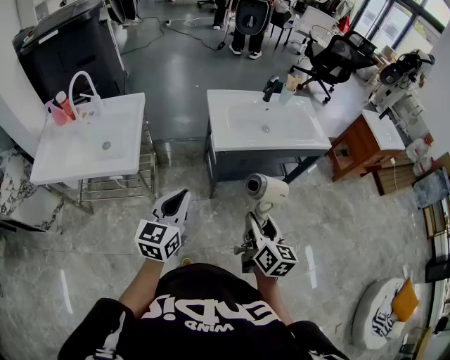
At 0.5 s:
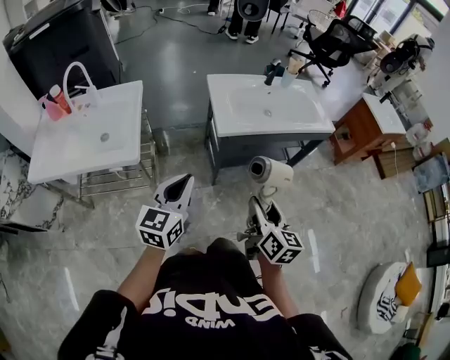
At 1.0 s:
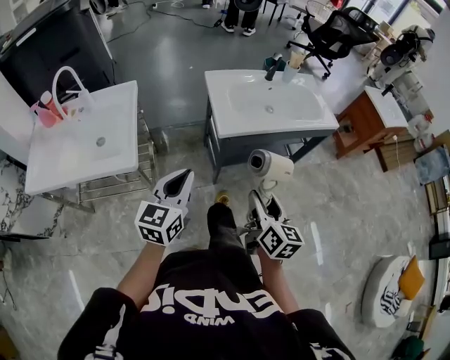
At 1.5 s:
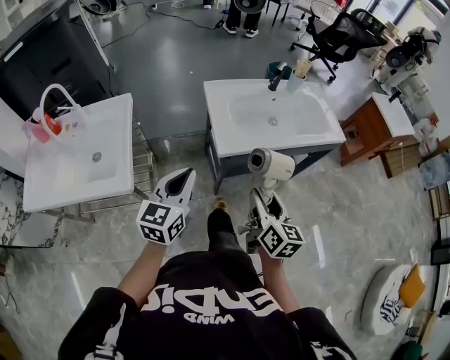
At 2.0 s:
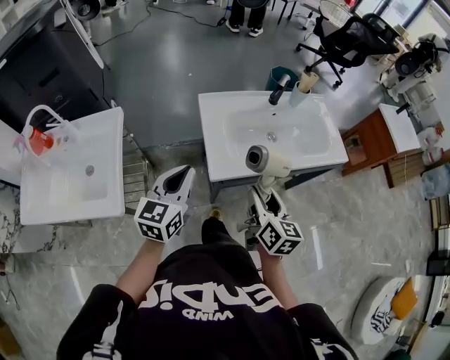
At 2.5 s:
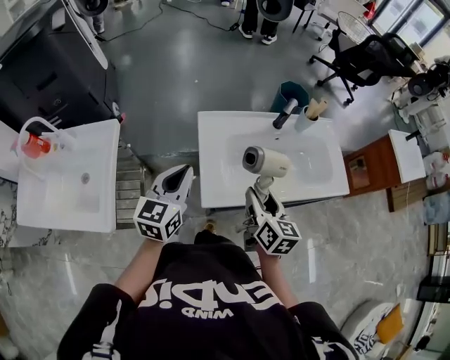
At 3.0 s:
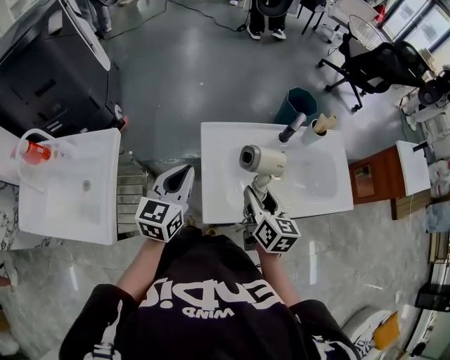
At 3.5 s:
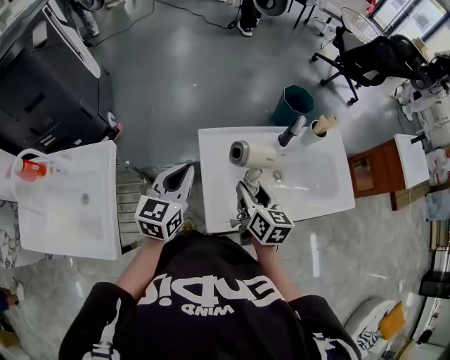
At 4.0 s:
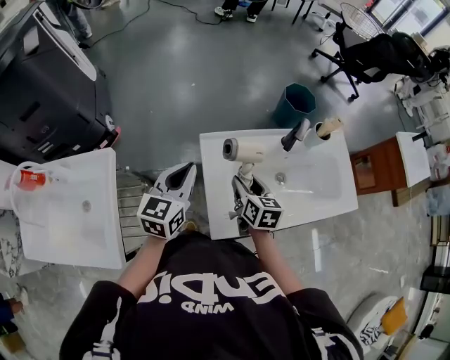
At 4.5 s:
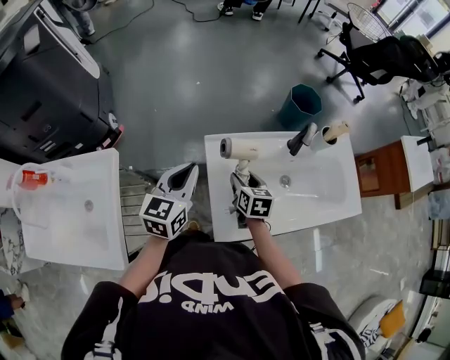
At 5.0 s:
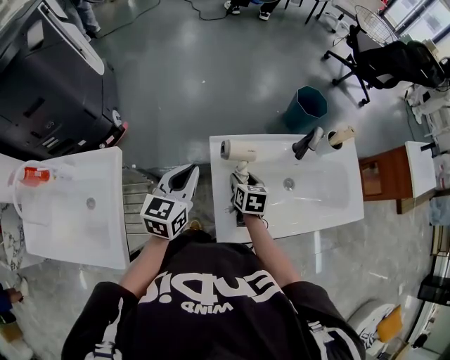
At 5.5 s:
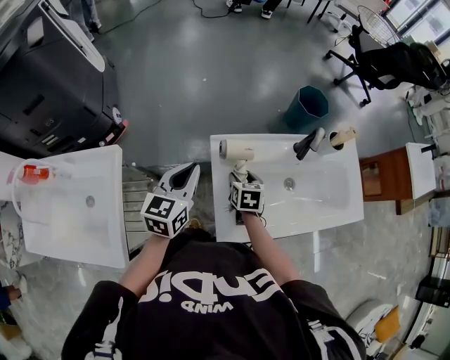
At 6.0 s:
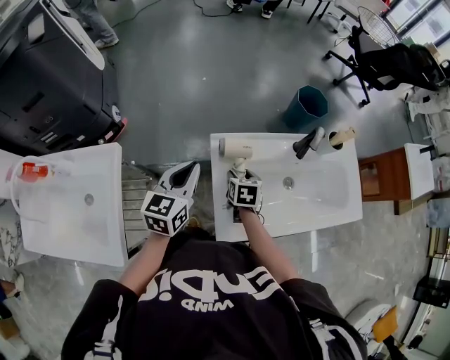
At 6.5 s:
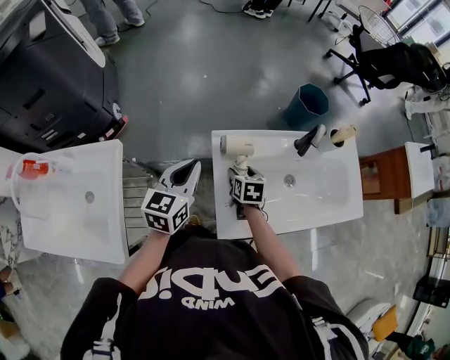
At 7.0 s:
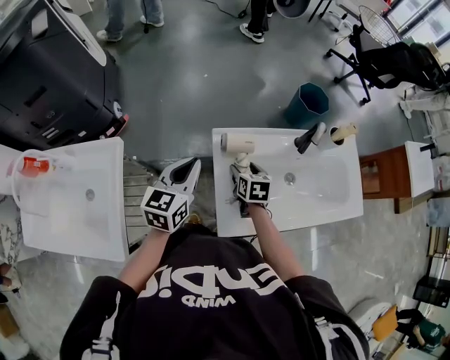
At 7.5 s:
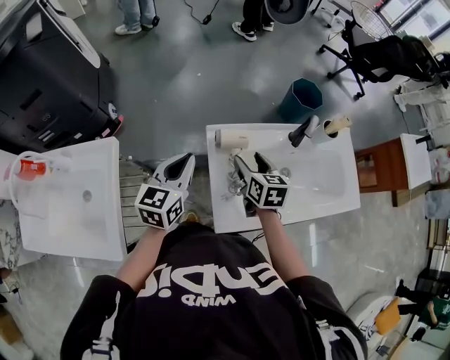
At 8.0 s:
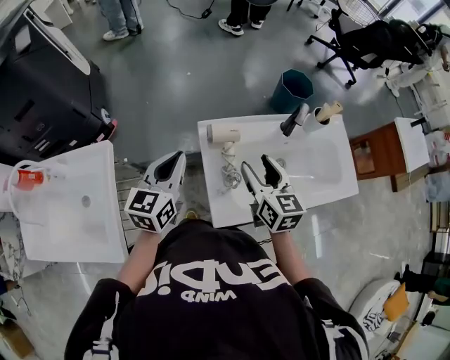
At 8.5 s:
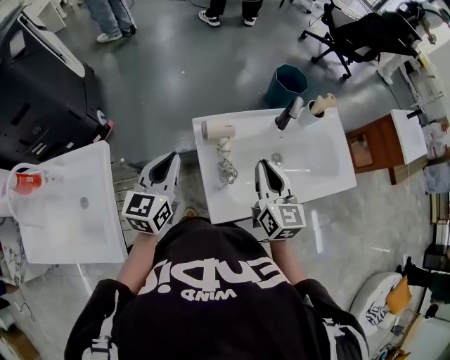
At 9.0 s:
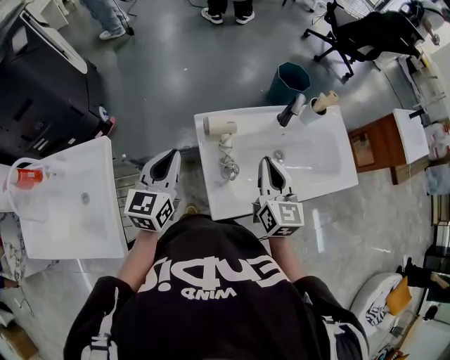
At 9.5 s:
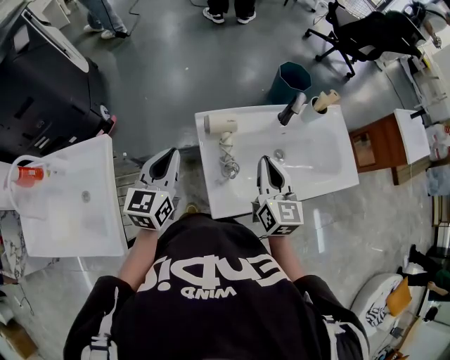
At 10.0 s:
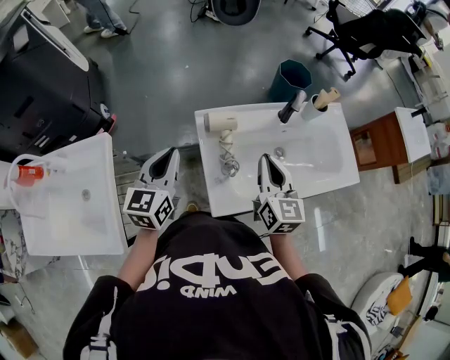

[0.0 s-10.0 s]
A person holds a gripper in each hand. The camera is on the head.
0.0 to 2.0 s: The grippers both shift forward by about 30 cm.
2.0 to 4.0 s: The grippers both shift forward by approximately 25 cm.
4.0 to 6.0 s: The right gripper is displaced downward by roughly 10 cm, and swivels about 20 degrees.
6.0 to 8.0 s: The right gripper goes some 20 cm upward, and tilts its fingers about 30 degrees upward.
8.0 to 10.0 s: The right gripper changes place by approximately 5 cm, and closes up.

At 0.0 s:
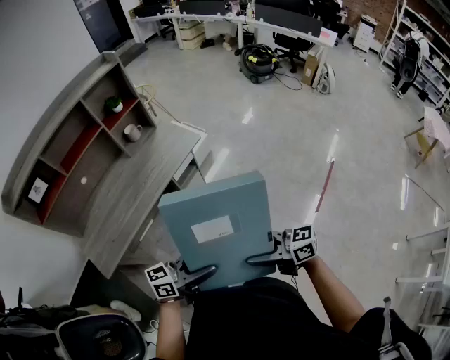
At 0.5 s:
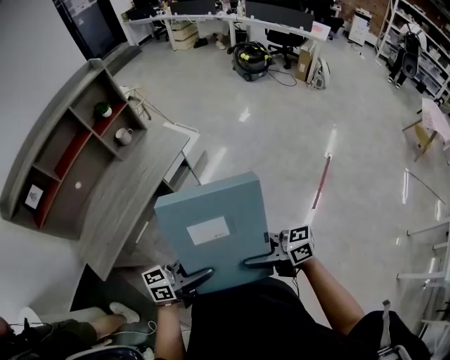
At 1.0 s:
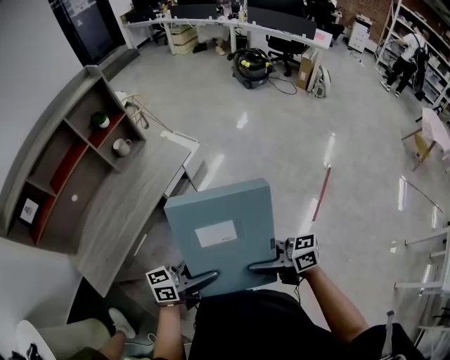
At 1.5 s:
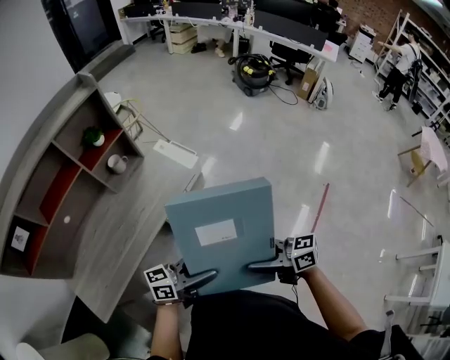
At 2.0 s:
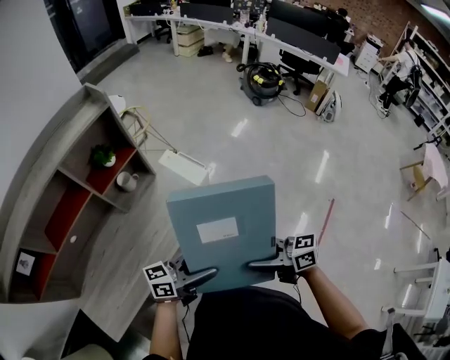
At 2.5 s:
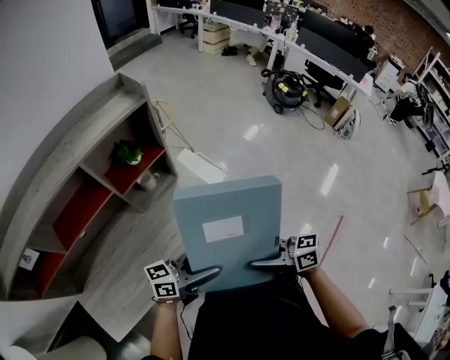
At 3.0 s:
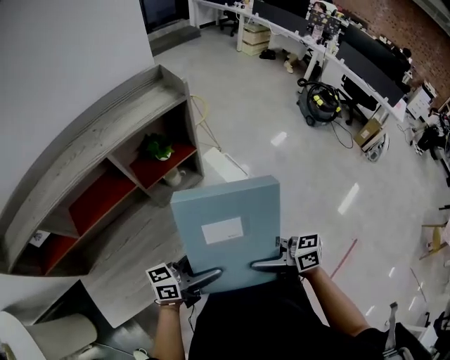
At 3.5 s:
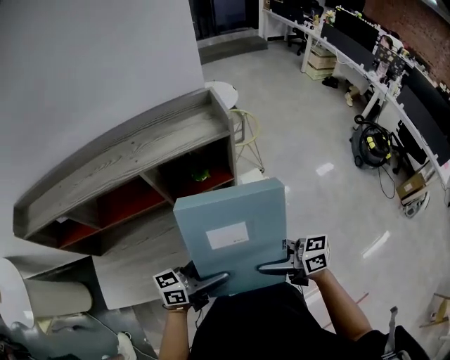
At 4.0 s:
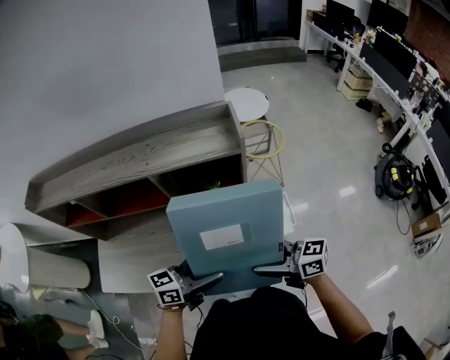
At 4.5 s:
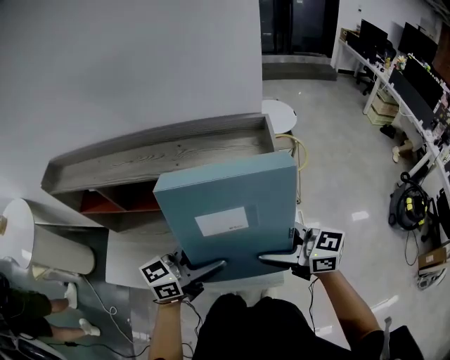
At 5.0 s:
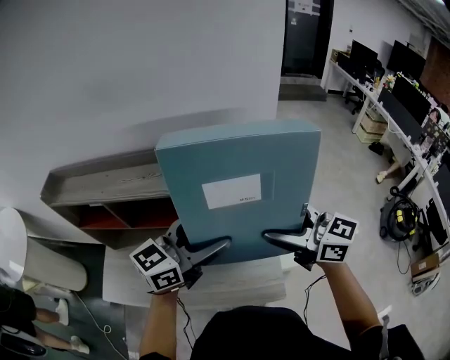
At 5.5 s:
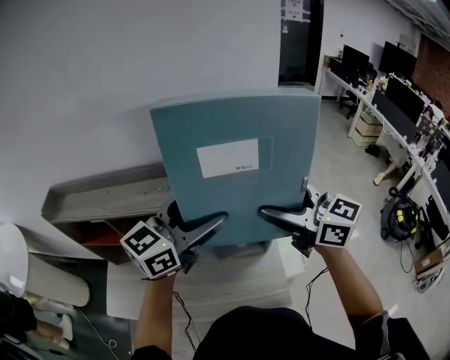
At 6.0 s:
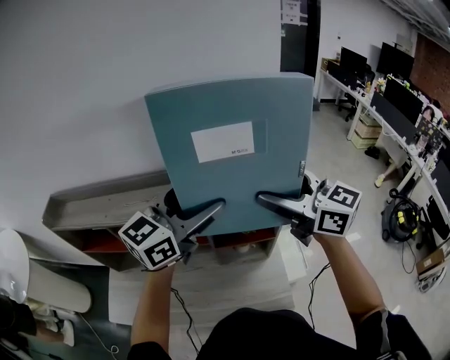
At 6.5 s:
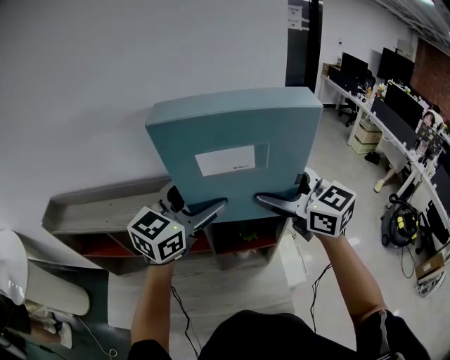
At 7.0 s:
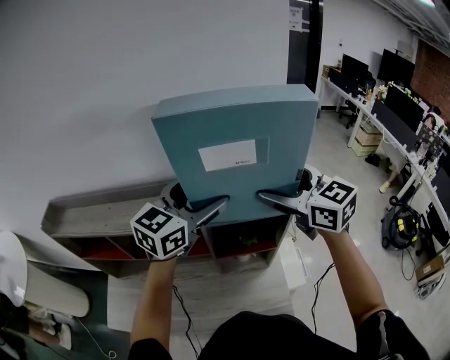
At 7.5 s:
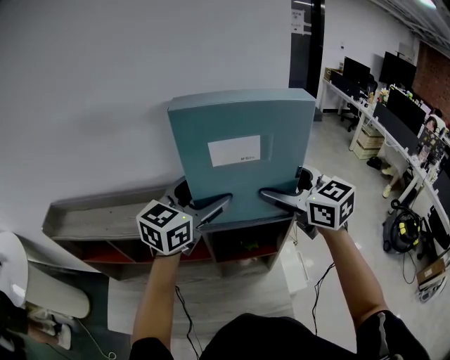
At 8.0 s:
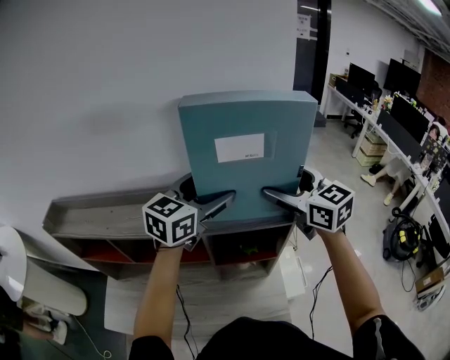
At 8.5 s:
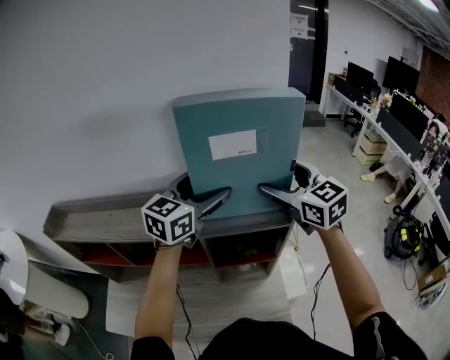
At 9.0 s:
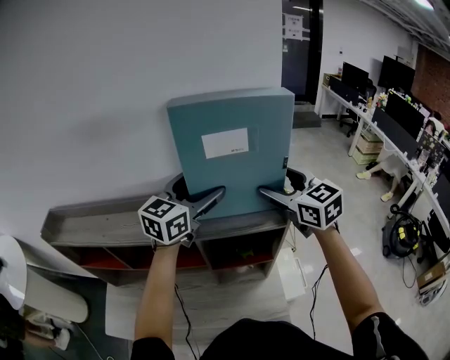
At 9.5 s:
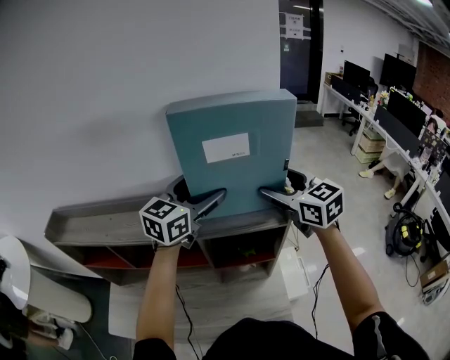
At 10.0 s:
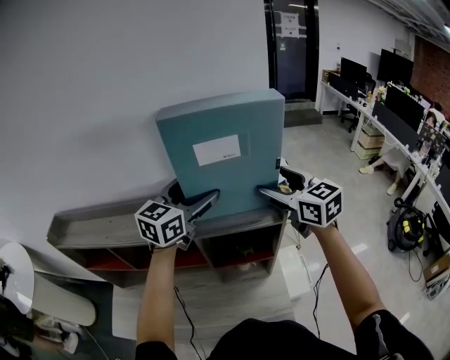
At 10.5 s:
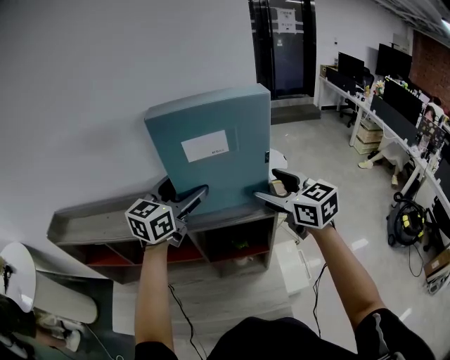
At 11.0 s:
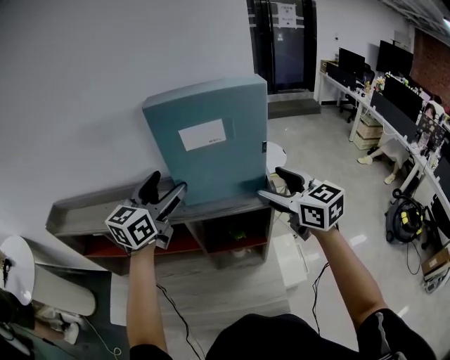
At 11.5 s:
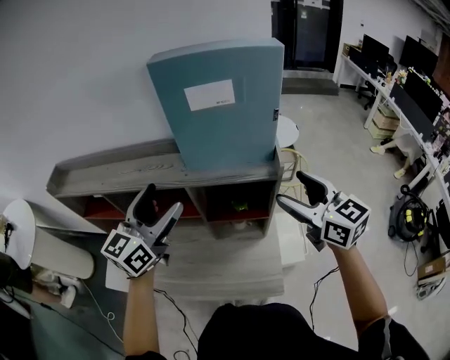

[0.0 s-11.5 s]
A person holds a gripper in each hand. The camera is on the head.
0.0 to 2.0 s: Both grippers are carried approximately 40 cm.
2.0 to 4.0 s: The right gripper ends up about 35 cm from where it was, and rotates about 50 degrees; the left gripper moves approximately 30 cm, and changes its angle by approximately 50 degrees.
4.0 to 6.0 s: Both grippers travel together upward, roughly 30 cm. The right gripper changes its angle by about 40 degrees. Meanwhile the left gripper rotates approximately 40 degrees.
6.0 to 7.5 s: Both grippers travel together forward, about 5 cm.
7.5 to 9.5 s: There are only small adjustments of the grippers.
9.5 to 11.5 s: The right gripper is displaced backward by about 15 cm, while the left gripper is displaced backward and to the left by some 20 cm.

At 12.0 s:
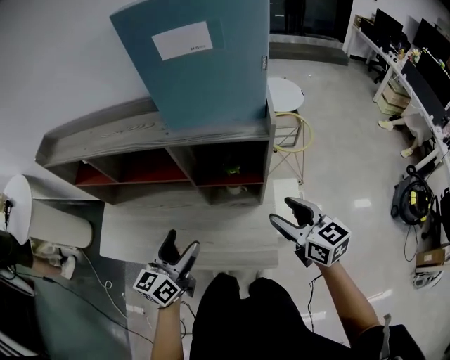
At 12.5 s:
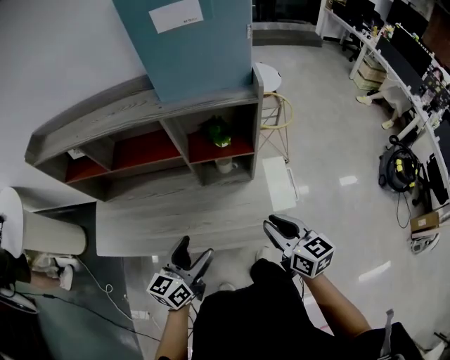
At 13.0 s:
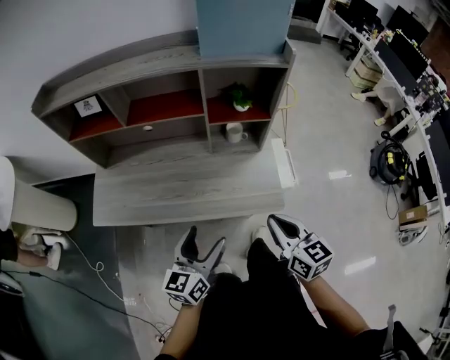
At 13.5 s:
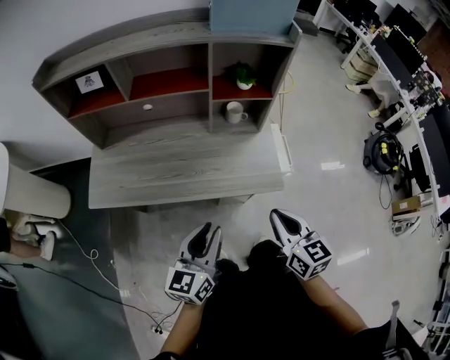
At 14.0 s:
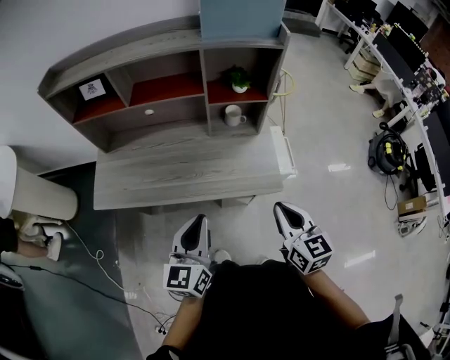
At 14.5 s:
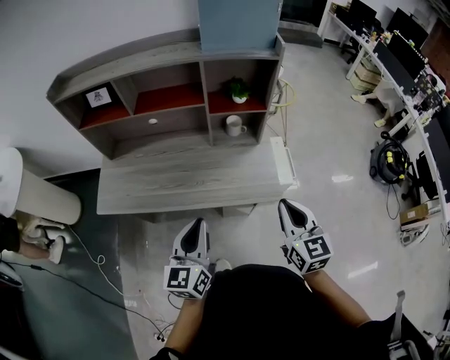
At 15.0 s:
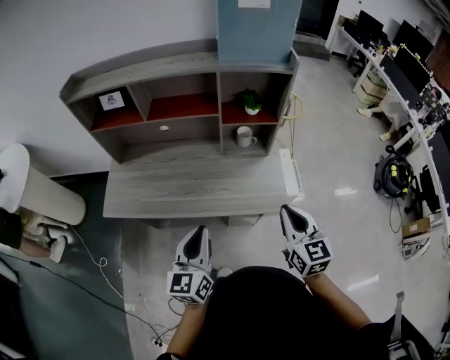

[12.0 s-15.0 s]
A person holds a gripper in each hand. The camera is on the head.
12.0 to 13.5 s: The right gripper travels backward and to the left by roughly 35 cm, and closes its fingers. Meanwhile the left gripper shifts some 25 cm backward, and closes its fingers.
13.5 to 15.0 s: The right gripper changes place by some 5 cm.

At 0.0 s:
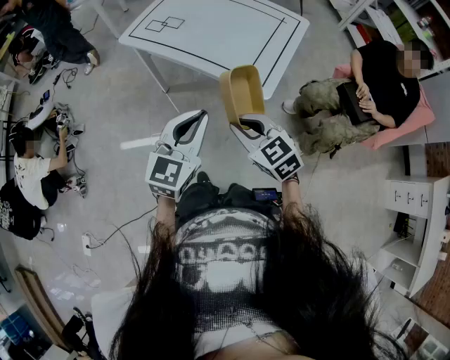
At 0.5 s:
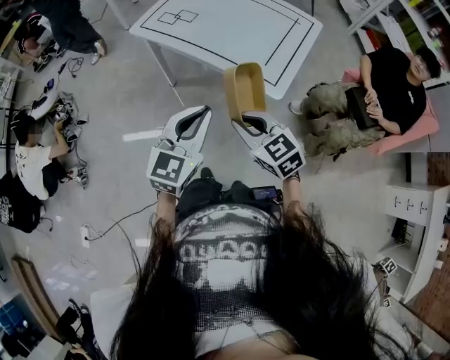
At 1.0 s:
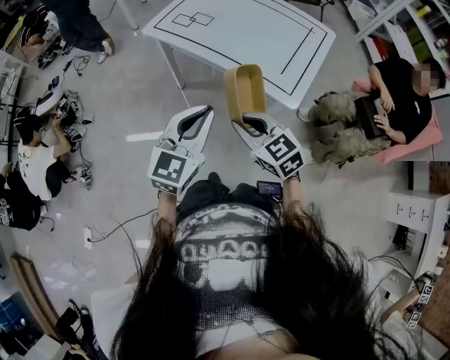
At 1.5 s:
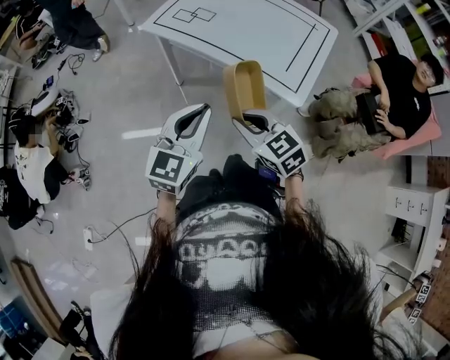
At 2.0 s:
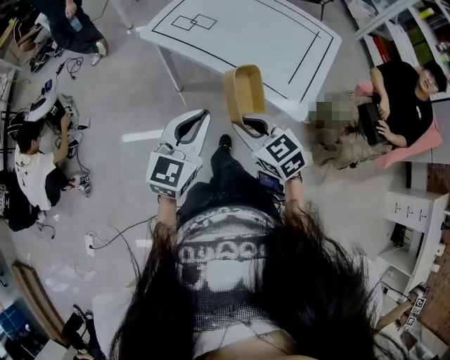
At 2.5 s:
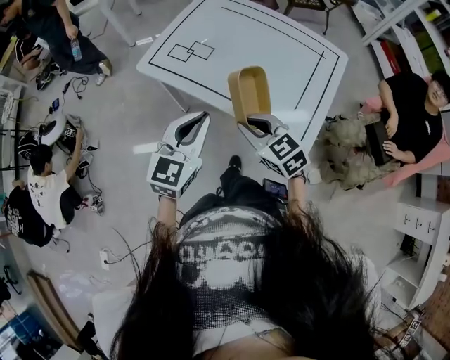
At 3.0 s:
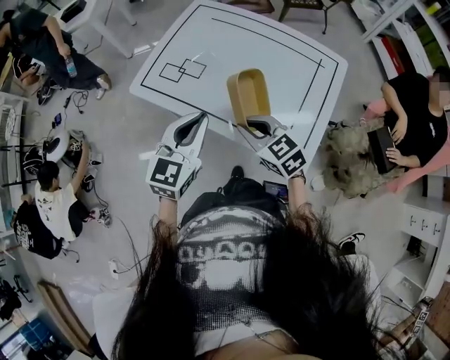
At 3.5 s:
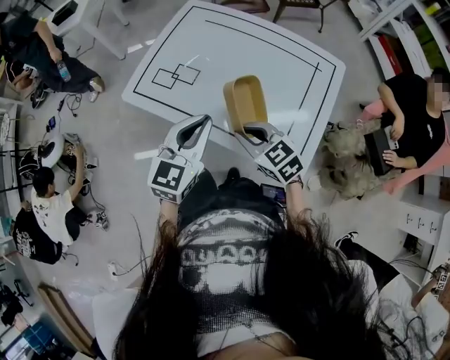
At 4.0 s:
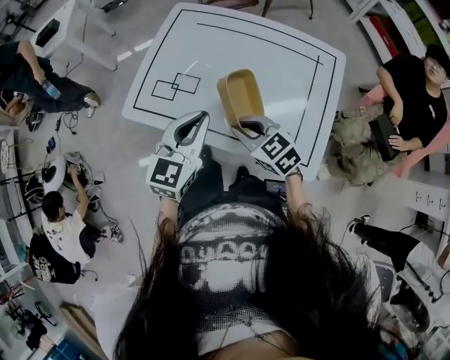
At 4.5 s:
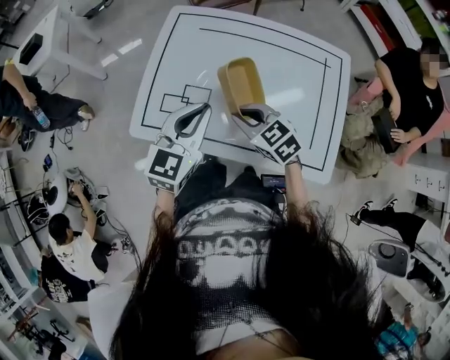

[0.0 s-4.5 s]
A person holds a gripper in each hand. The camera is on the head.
0.0 to 2.0 s: The two grippers go some 20 cm forward and to the left.
2.0 to 4.5 s: Both grippers are carried forward, approximately 40 cm.
